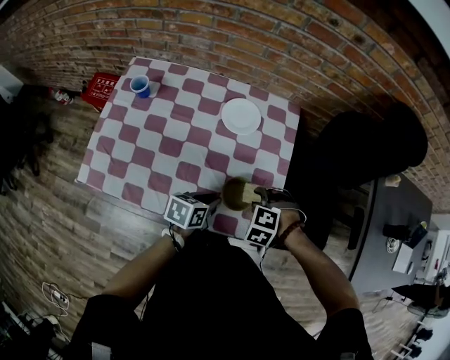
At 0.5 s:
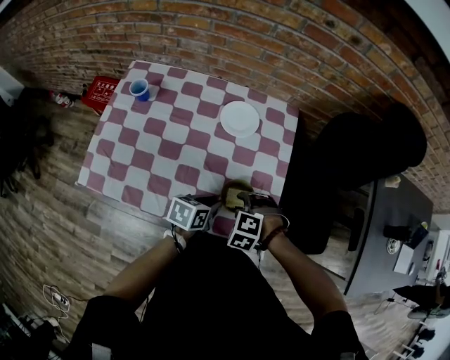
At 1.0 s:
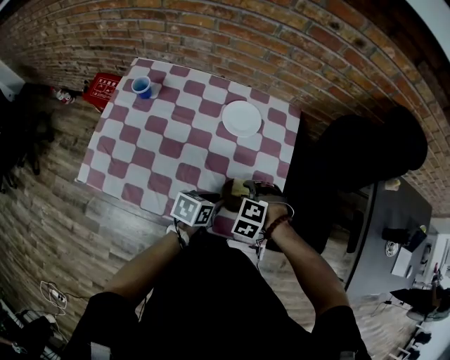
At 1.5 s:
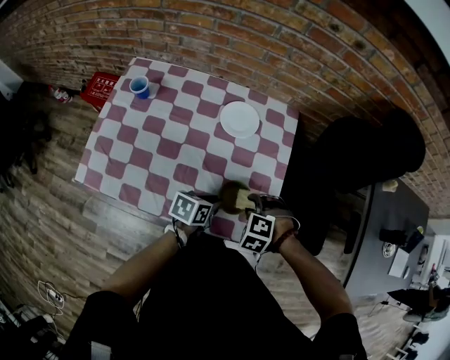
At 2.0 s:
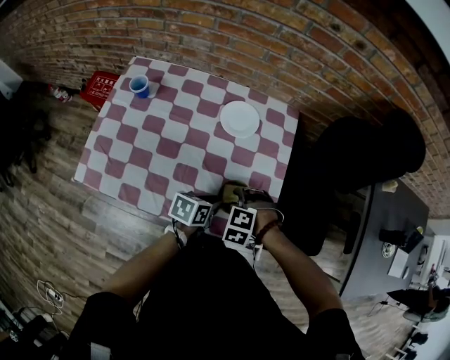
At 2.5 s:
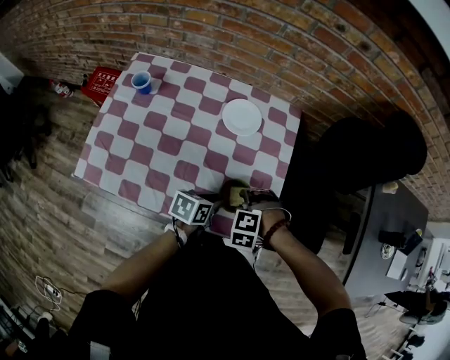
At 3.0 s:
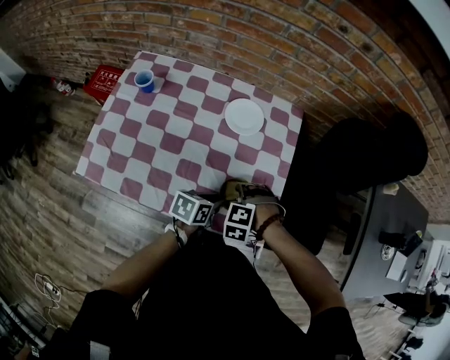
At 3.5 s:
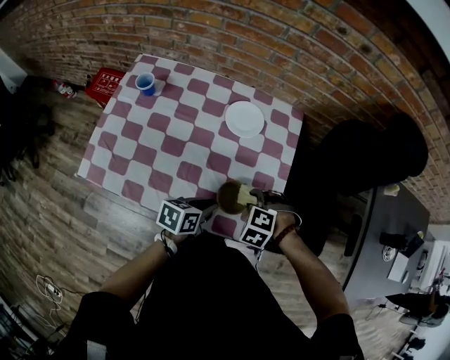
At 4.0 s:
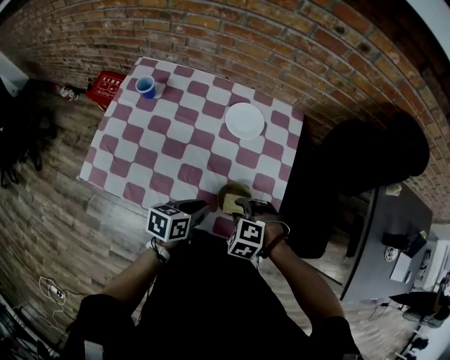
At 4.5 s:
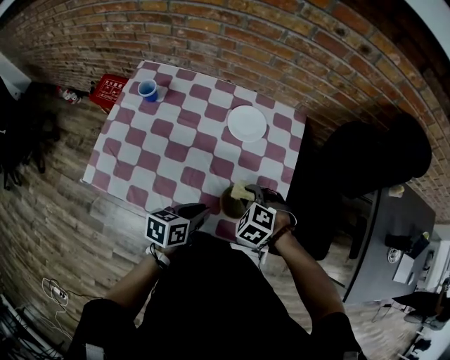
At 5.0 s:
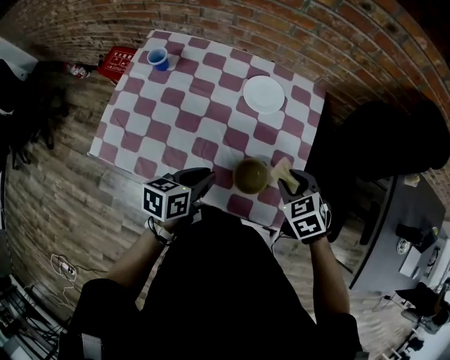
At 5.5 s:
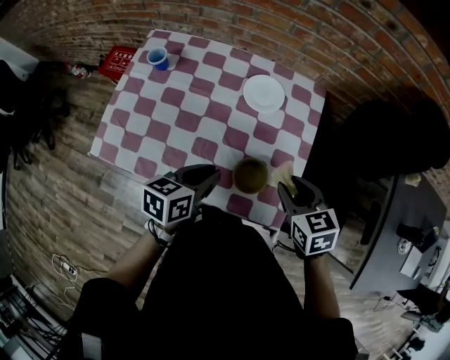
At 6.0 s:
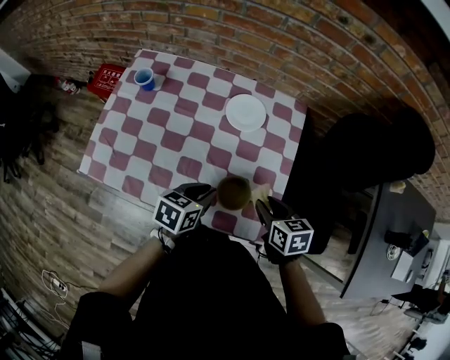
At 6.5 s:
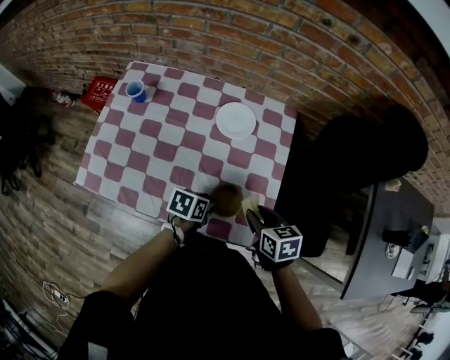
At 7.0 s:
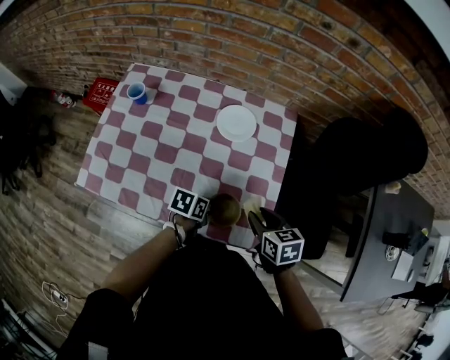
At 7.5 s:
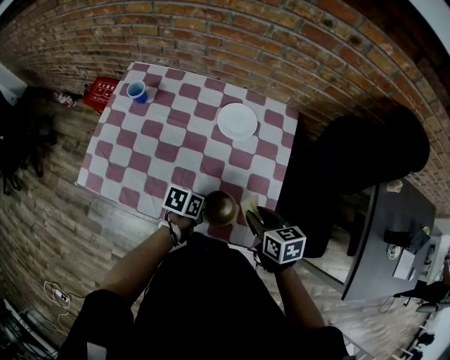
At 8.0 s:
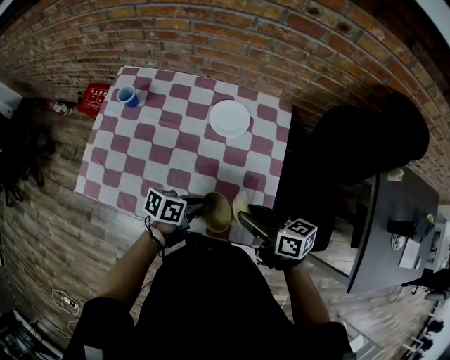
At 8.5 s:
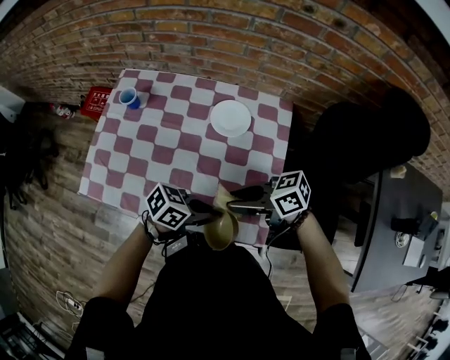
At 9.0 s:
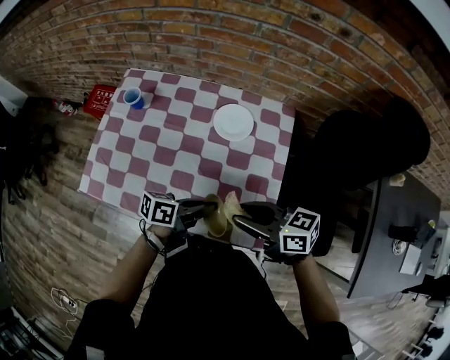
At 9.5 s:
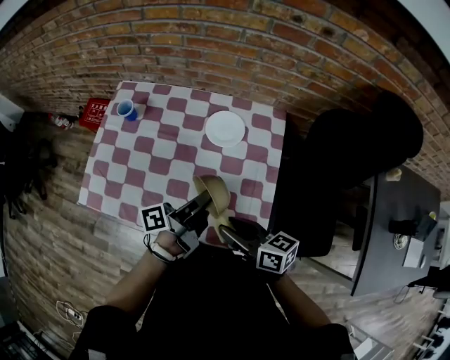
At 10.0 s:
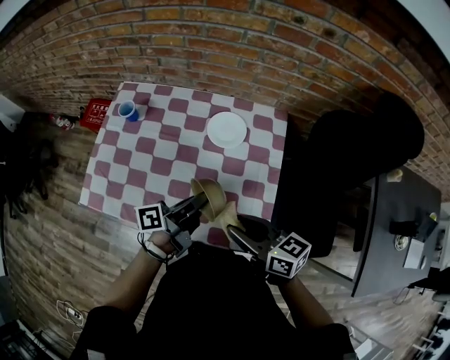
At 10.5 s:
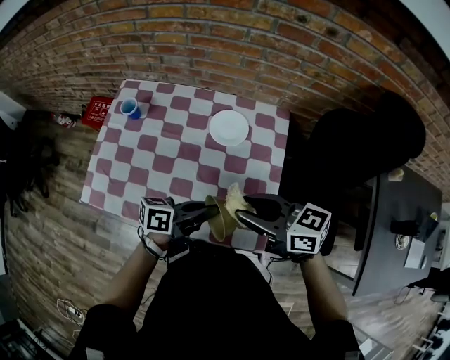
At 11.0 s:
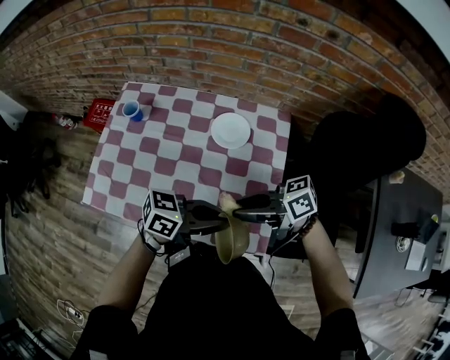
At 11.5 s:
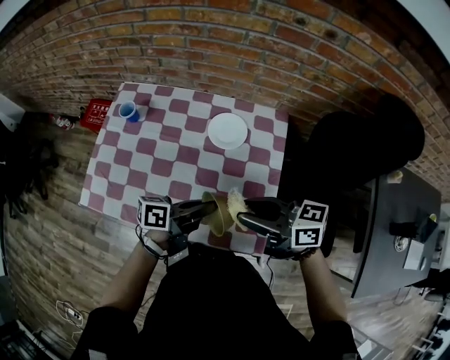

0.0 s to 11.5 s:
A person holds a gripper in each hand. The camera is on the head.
0.0 to 2.0 s: The right gripper moves left and right over about 5 cm, changing direction 2 times.
2.0 to 4.0 s: The left gripper shifts by about 10 cm.
4.0 to 6.0 s: The right gripper goes some 10 cm to the right, and rotates around the line of its fingers by some 70 degrees, clockwise from behind.
6.0 to 7.5 s: The left gripper heads downward, covering some 10 cm, rotates approximately 20 degrees, and opens, then closes again.
7.5 to 9.5 s: The right gripper moves upward, some 10 cm, and rotates about 30 degrees. The left gripper travels upward by roughly 20 cm, and tips its fingers upward by roughly 50 degrees.
9.5 to 11.5 s: The left gripper turns by roughly 30 degrees. The right gripper travels upward by about 5 cm, and rotates approximately 20 degrees.

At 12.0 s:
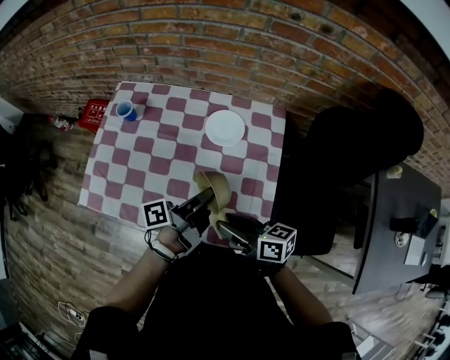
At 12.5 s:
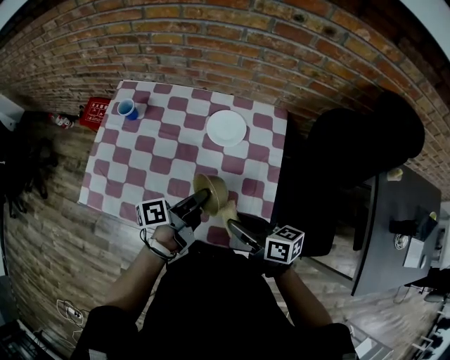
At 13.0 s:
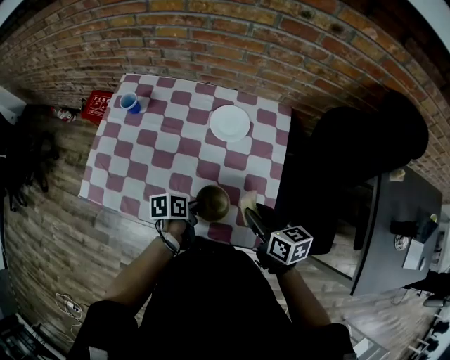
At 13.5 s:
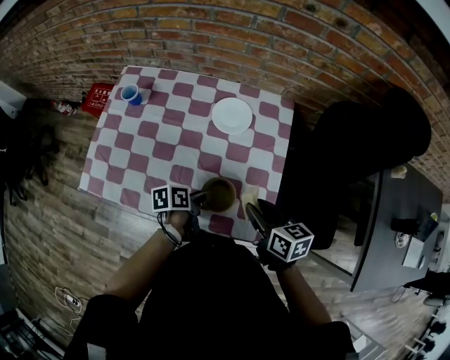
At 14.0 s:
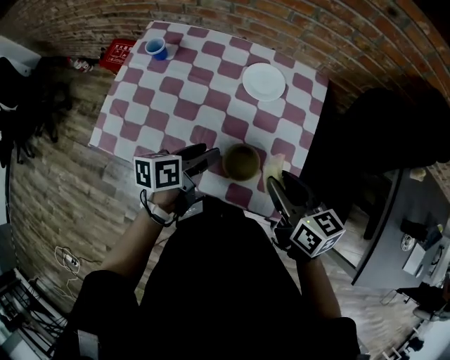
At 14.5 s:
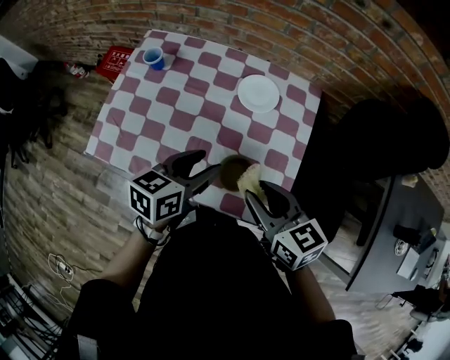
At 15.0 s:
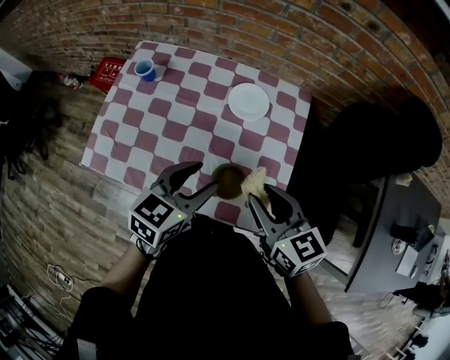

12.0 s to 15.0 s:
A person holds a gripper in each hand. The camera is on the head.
12.0 to 13.5 s: The left gripper shifts about 15 cm downward, points its fingers roughly 40 degrees further downward, and opens up. Meanwhile the right gripper goes roughly 10 cm to the right, and turns by roughly 30 degrees.
13.5 to 15.0 s: The right gripper travels upward and to the left by approximately 10 cm, and turns by about 20 degrees; the left gripper heads upward, covering approximately 20 cm, and rotates around the line of its fingers by roughly 50 degrees, clockwise from behind.

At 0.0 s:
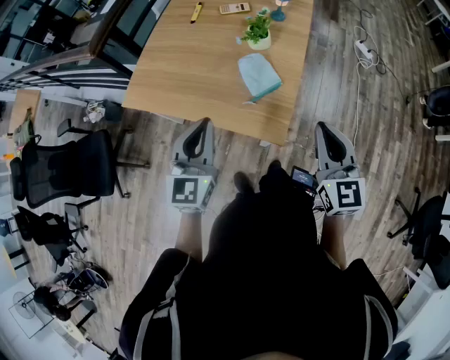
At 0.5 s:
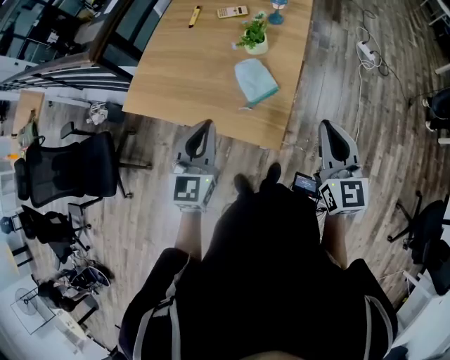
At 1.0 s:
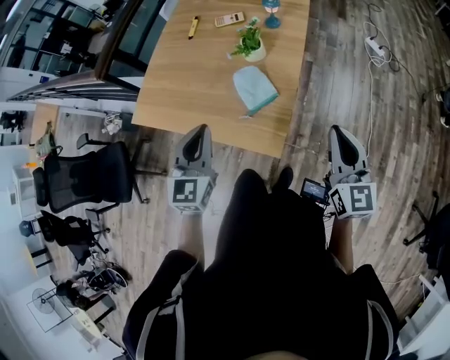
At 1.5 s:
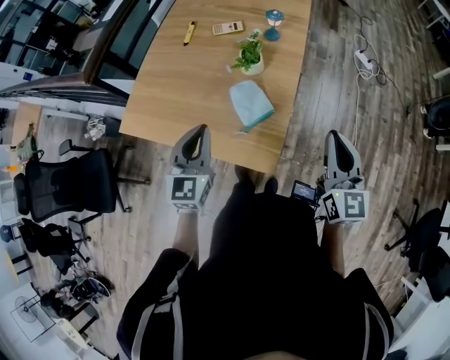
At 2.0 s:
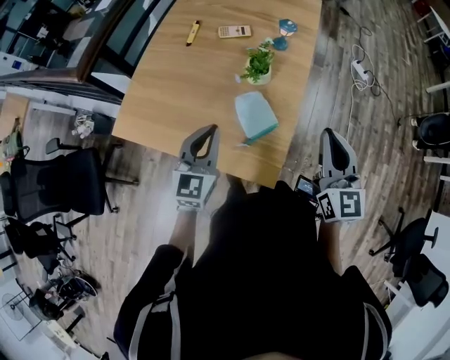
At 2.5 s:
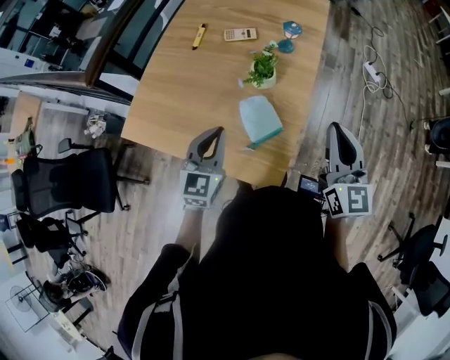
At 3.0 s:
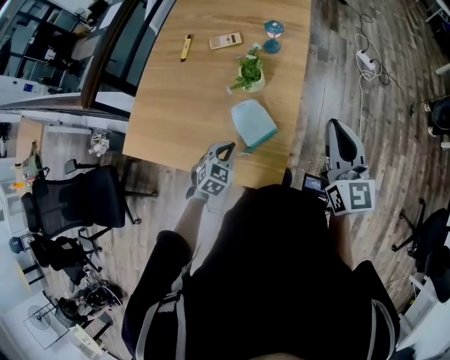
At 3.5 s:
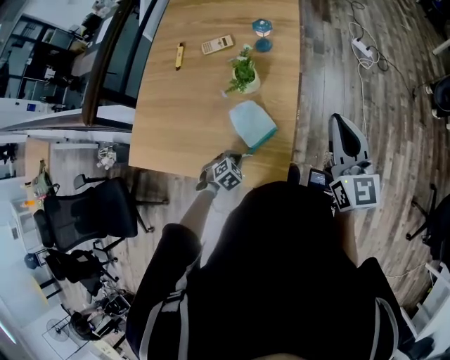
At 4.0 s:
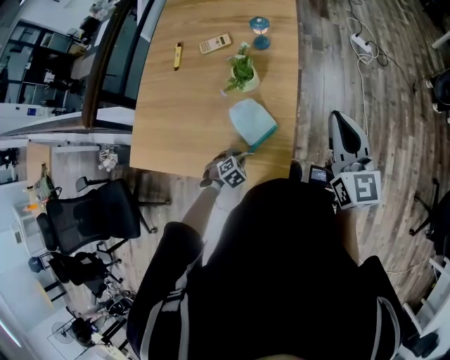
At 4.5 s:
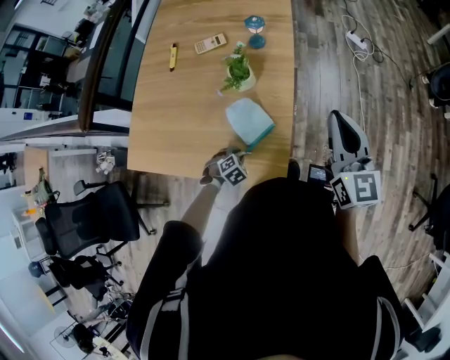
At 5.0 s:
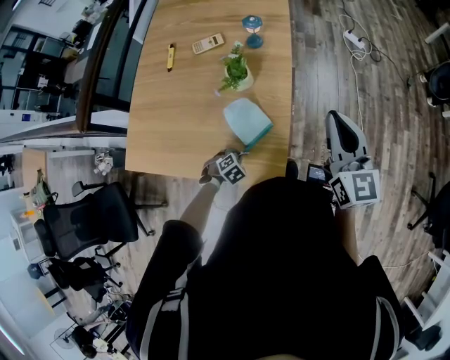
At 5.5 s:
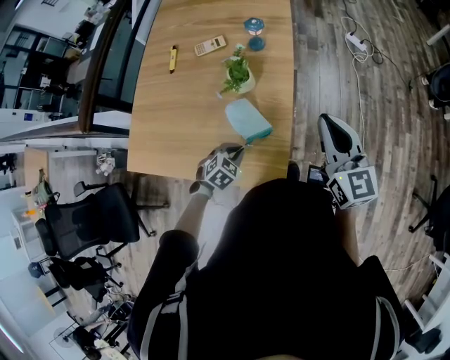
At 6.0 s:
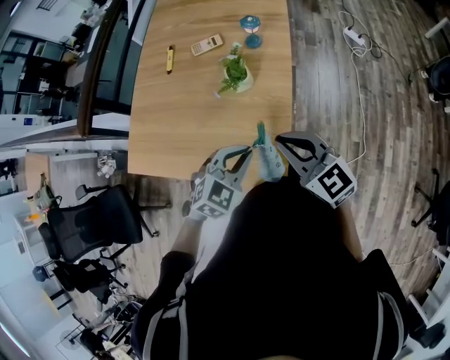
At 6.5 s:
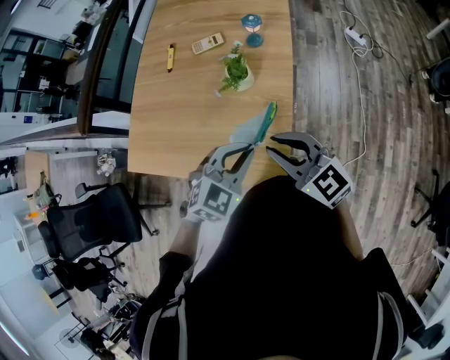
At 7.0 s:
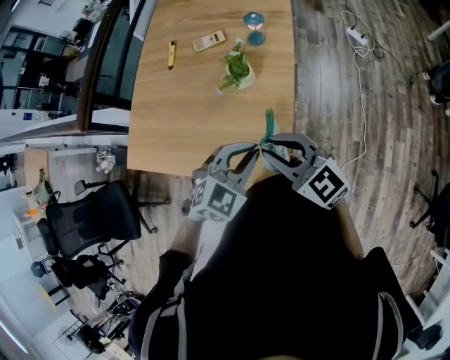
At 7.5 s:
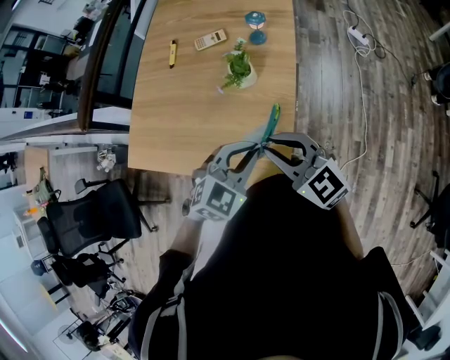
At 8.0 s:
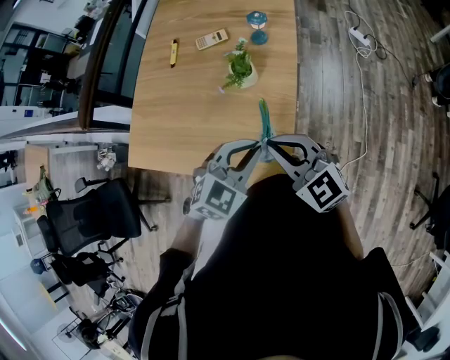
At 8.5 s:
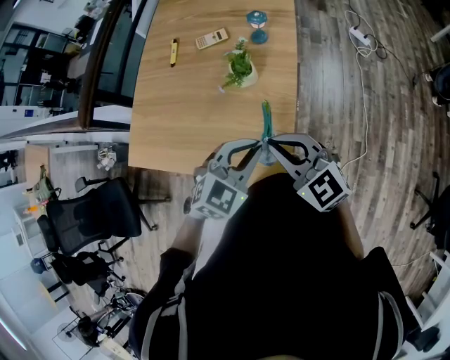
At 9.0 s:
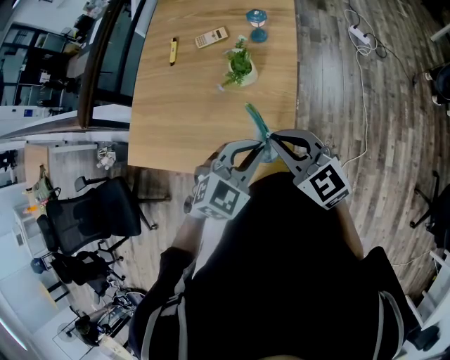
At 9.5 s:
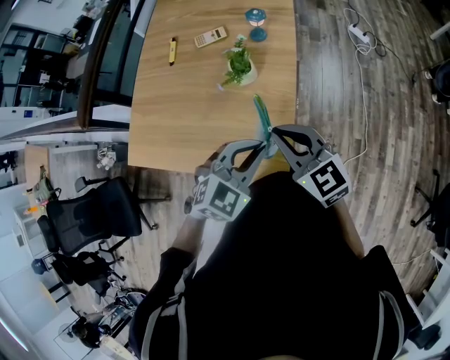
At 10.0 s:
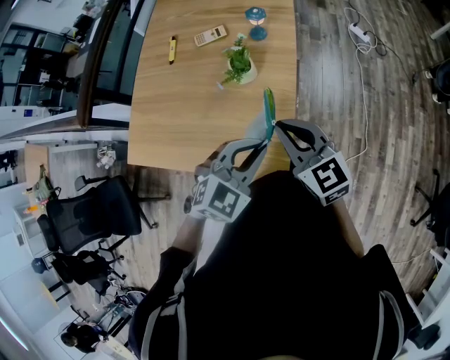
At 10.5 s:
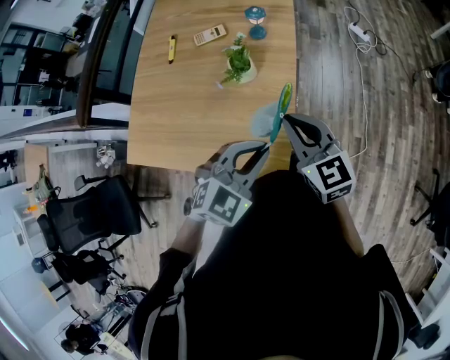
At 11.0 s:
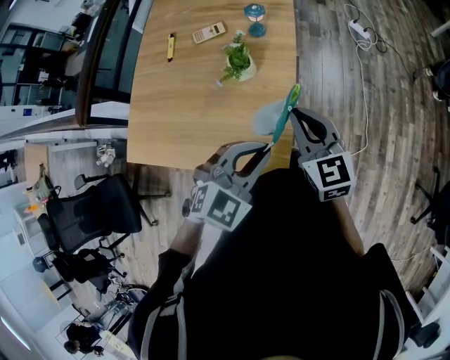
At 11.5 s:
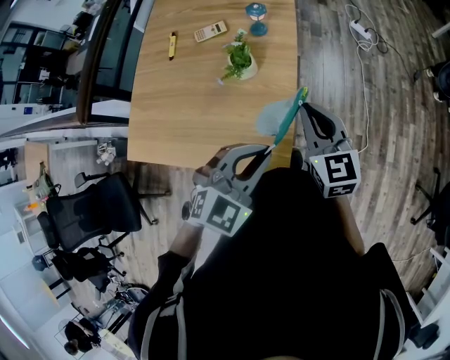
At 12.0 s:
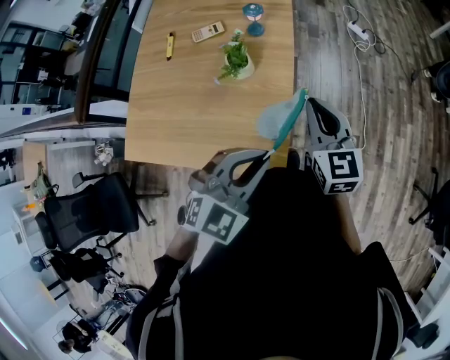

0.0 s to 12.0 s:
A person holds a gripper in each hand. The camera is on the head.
0.0 to 2.0 s: The two grippers go some 15 cm forward.
2.0 to 4.0 s: The right gripper is displaced to the right by roughly 10 cm; the left gripper goes about 30 cm downward, and points its fingers about 60 degrees further downward.
4.0 to 6.0 s: The right gripper ends up some 15 cm from where it was, and changes its angle by approximately 40 degrees. Meanwhile the left gripper heads upward, covering some 30 cm, and tilts its fingers roughly 30 degrees upward.
6.0 to 8.0 s: The grippers stay close to where they were, moving slightly.
8.0 to 10.0 s: The grippers make only small movements.
10.0 to 12.0 s: The left gripper shifts by some 5 cm, while the right gripper travels to the right by some 10 cm, and changes its angle by about 20 degrees.
